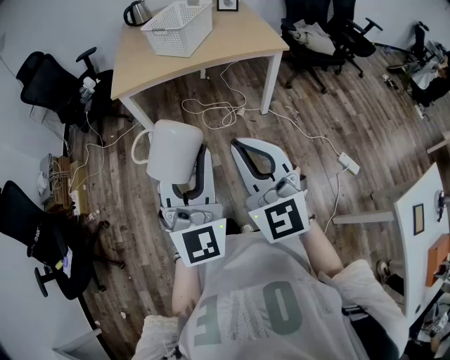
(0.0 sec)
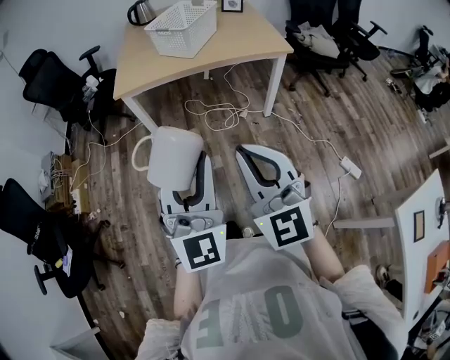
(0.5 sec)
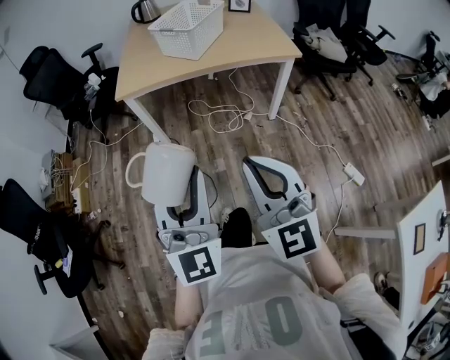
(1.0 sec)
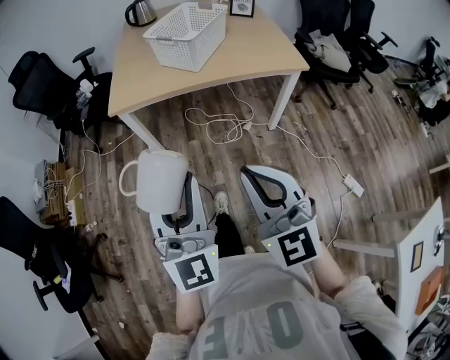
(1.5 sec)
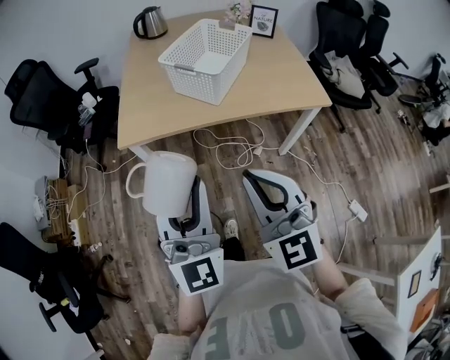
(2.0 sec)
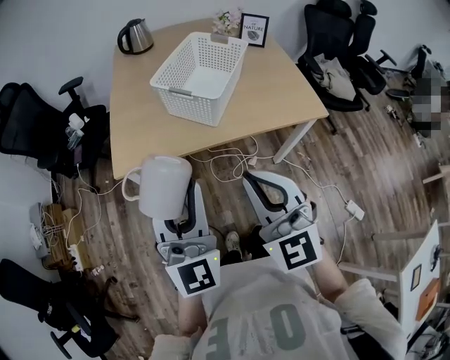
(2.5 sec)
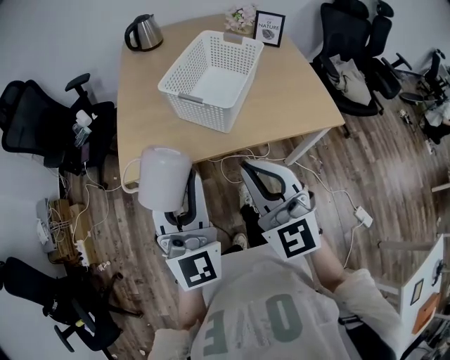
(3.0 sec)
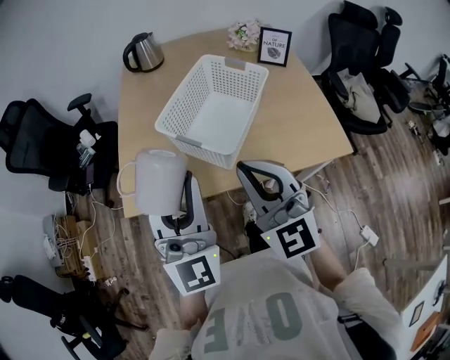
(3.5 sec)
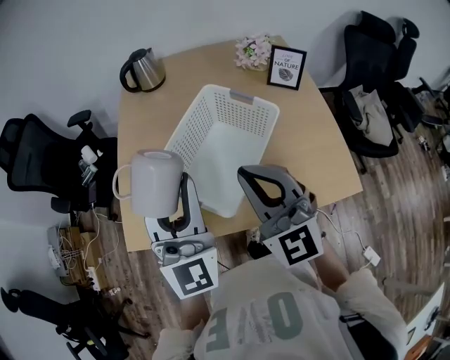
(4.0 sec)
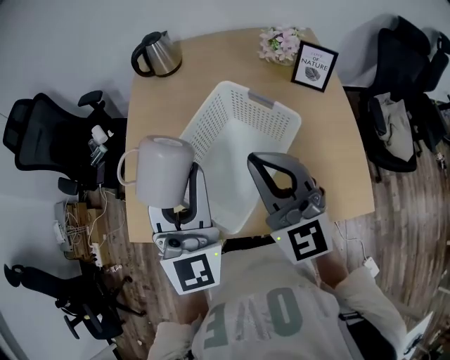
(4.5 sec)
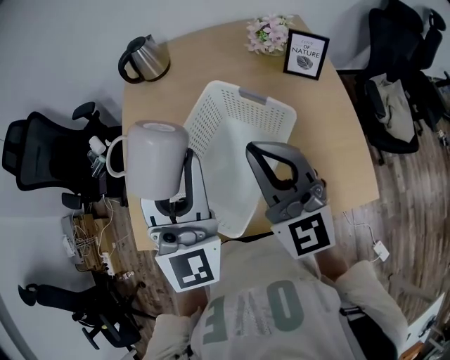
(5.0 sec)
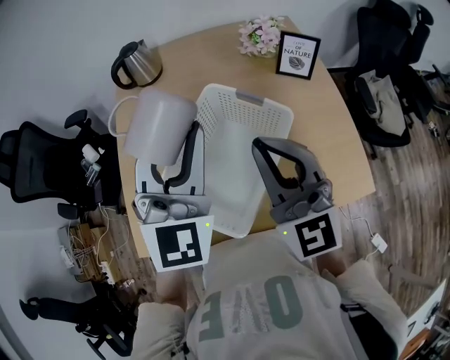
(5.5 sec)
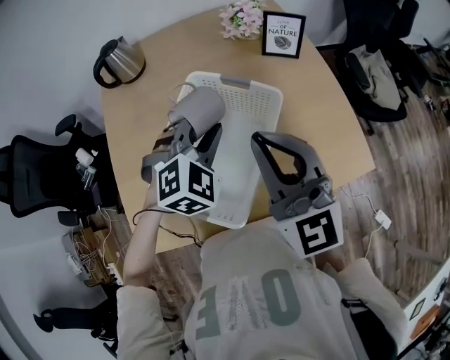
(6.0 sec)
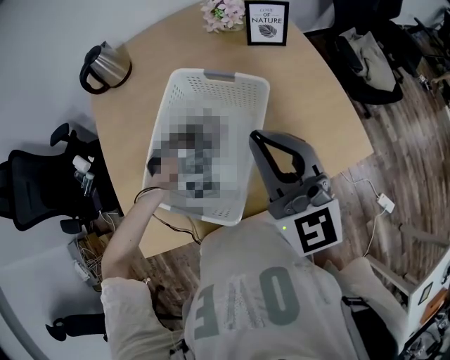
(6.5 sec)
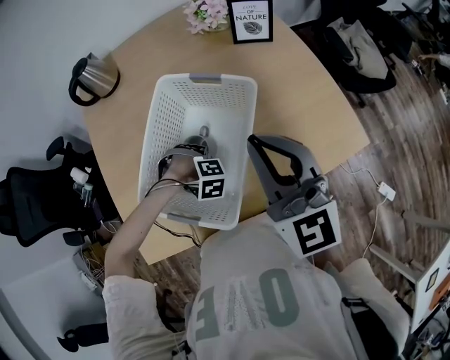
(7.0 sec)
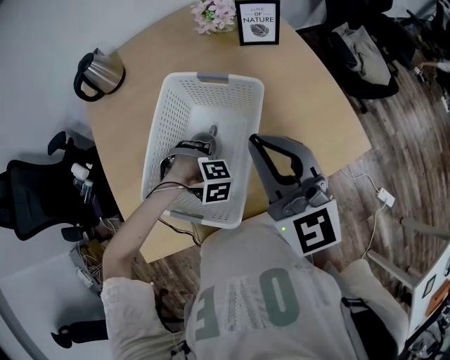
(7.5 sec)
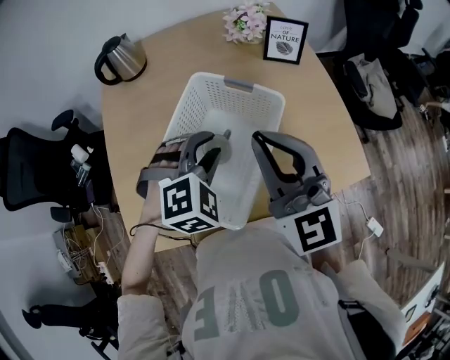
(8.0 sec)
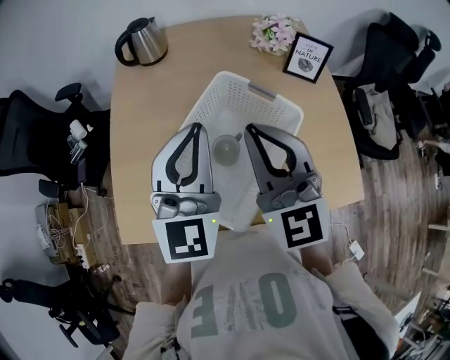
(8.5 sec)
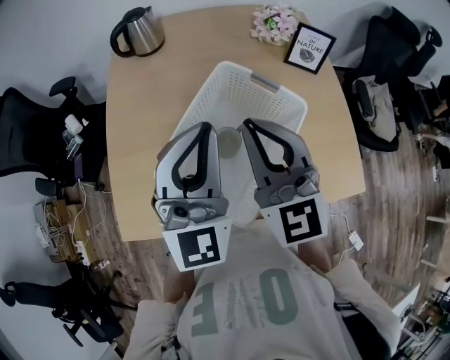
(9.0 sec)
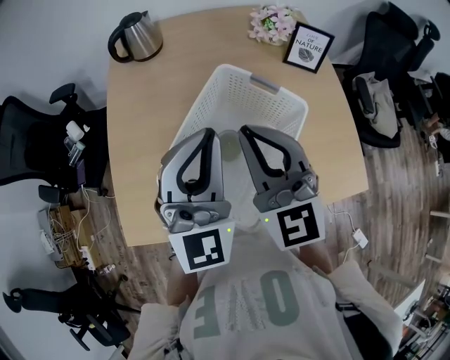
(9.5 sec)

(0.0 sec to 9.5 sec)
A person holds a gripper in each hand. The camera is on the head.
0.0 sec - 2.0 sec: Both grippers travel together forward, some 30 cm.
2.0 sec - 4.0 sec: The two grippers travel together, forward, some 40 cm.
4.0 sec - 5.5 sec: The left gripper moves forward and to the right, approximately 15 cm. Meanwhile the right gripper heads forward, covering roughly 10 cm.
5.5 sec - 7.5 sec: The left gripper heads downward, covering about 40 cm, and angles its fingers downward, by some 80 degrees; the right gripper changes place by some 5 cm.
7.5 sec - 9.5 sec: The right gripper changes place by about 10 cm, while the left gripper heads upward, covering roughly 35 cm, tips its fingers upward by some 90 degrees, and closes up.

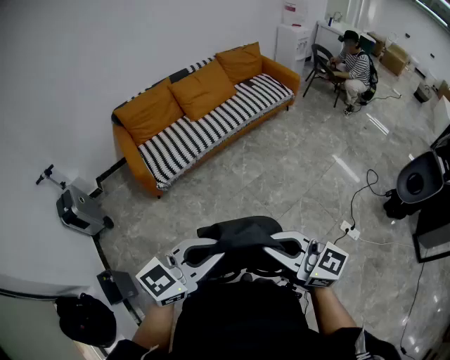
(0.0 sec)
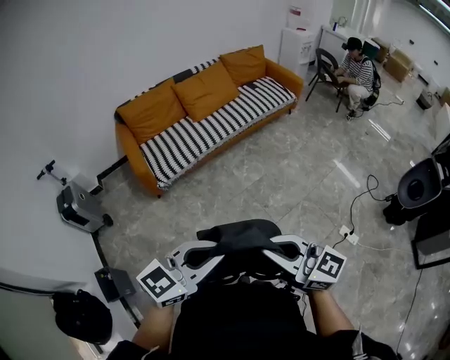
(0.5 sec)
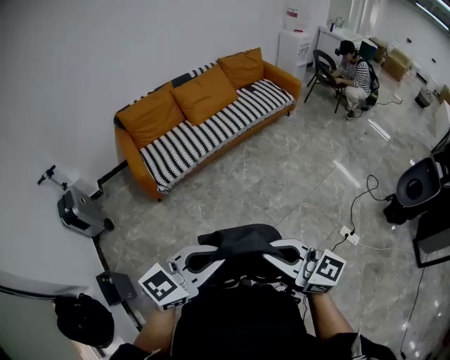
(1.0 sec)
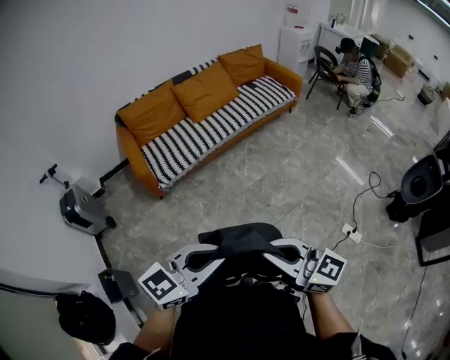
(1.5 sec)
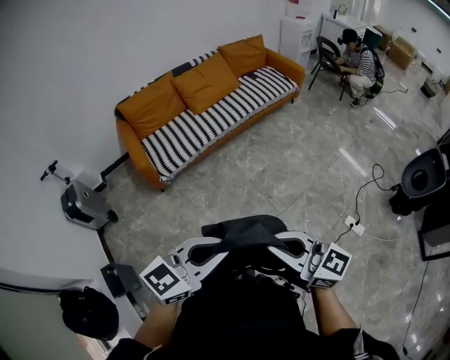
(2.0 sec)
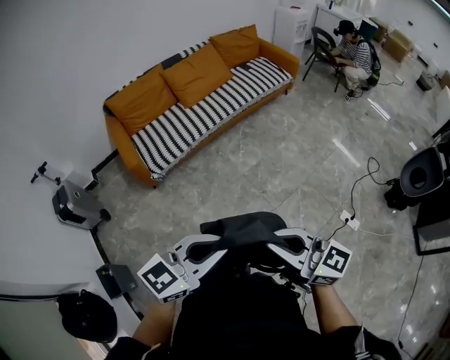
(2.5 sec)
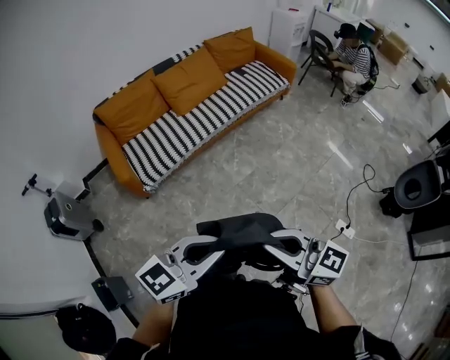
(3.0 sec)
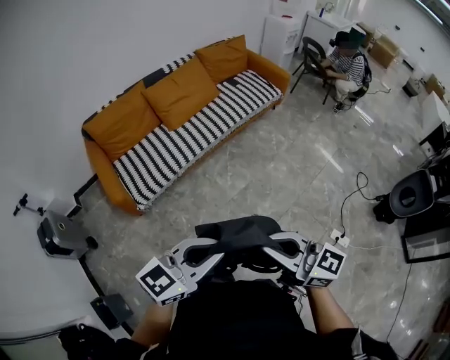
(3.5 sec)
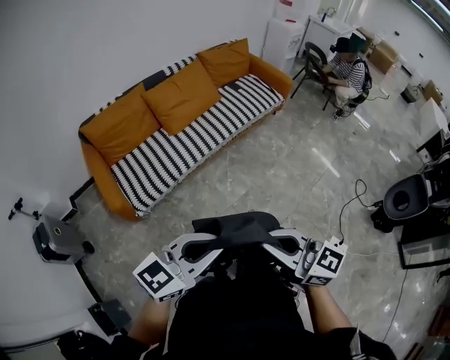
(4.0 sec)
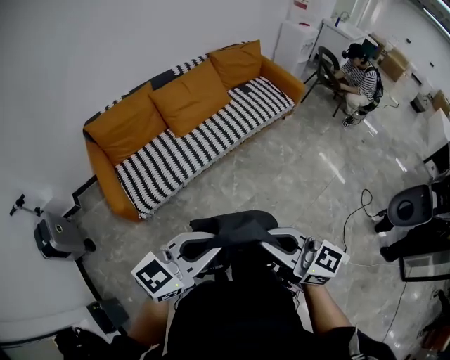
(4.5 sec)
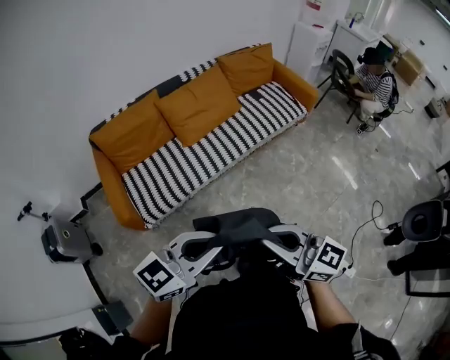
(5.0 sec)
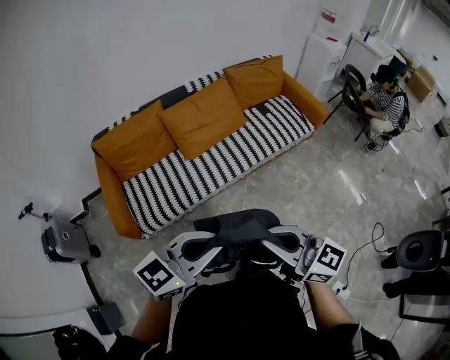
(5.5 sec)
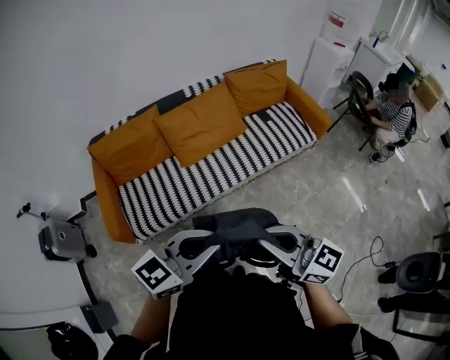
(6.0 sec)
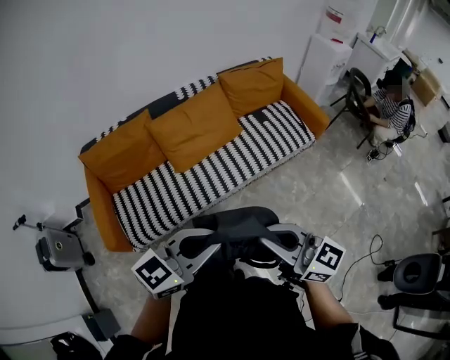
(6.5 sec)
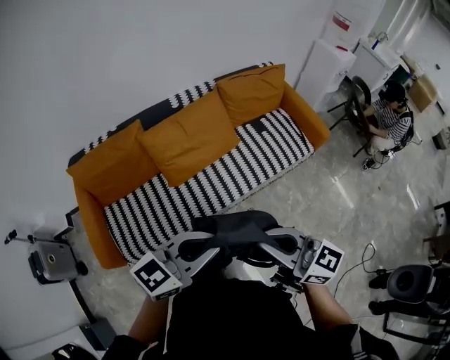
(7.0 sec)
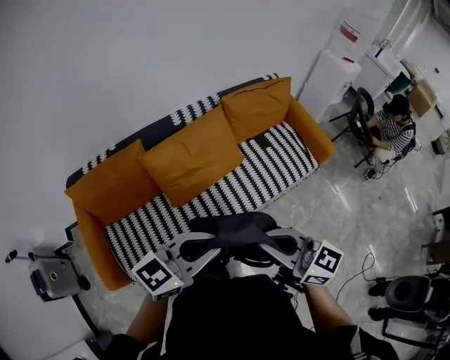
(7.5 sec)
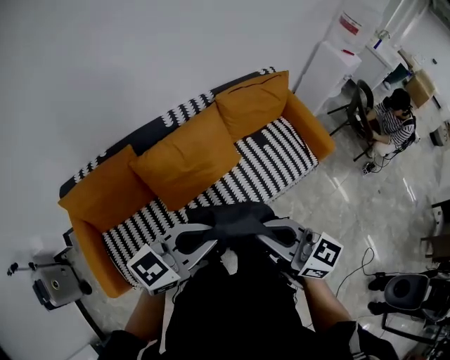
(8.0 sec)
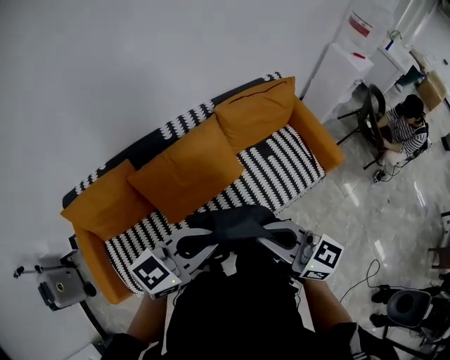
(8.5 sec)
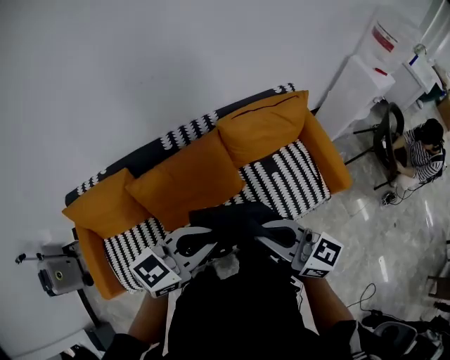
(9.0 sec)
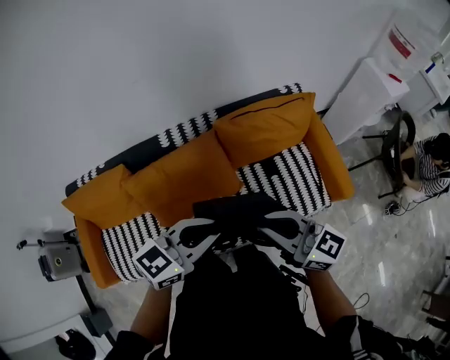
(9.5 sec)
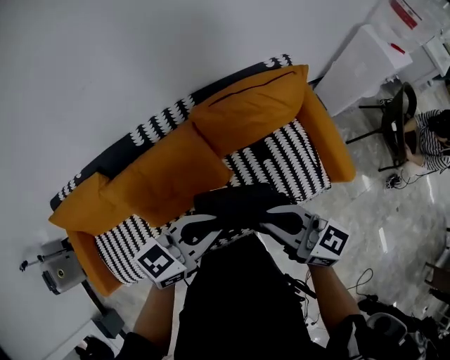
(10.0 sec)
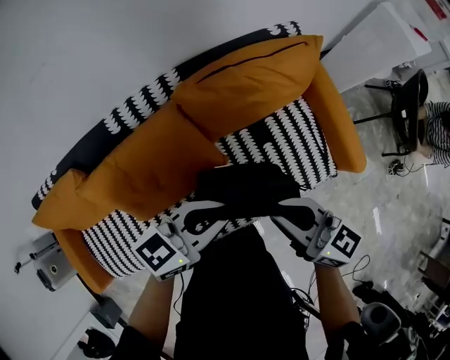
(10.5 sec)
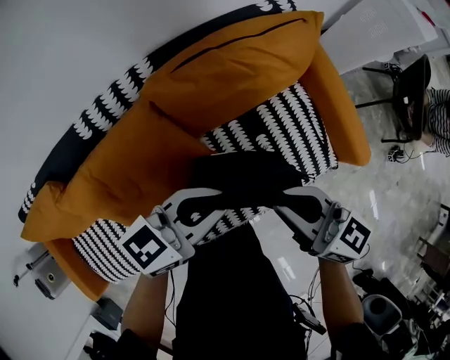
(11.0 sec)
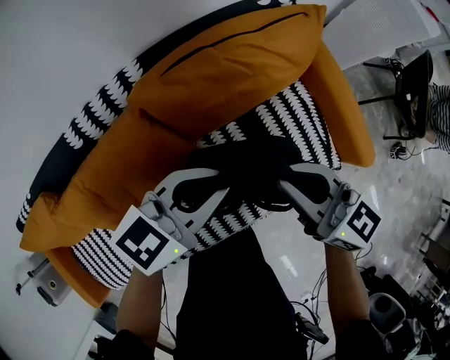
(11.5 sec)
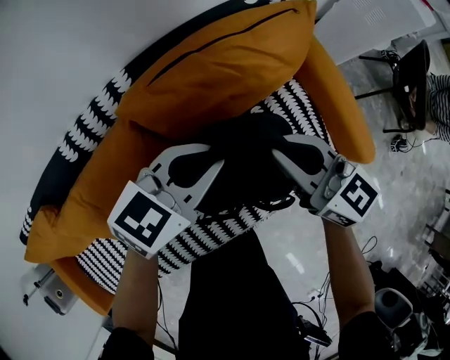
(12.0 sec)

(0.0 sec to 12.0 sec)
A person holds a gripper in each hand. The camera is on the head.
0.0 sec - 2.0 sec: The grippers make only small movements.
2.0 sec - 4.0 sec: Both grippers move forward, about 25 cm.
4.0 sec - 6.0 sec: Both grippers travel together forward, approximately 30 cm.
6.0 sec - 8.0 sec: The two grippers go roughly 35 cm forward.
8.0 sec - 10.0 sec: The two grippers go roughly 35 cm forward and to the right.
10.0 sec - 12.0 sec: The grippers both shift forward and downward by some 25 cm. The right gripper swivels about 20 degrees.

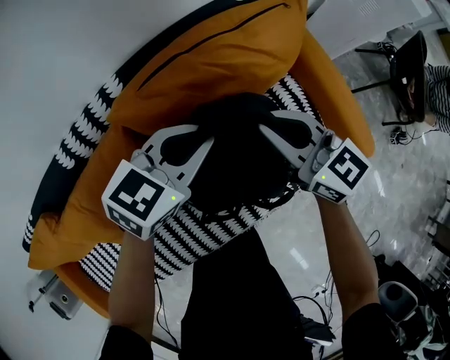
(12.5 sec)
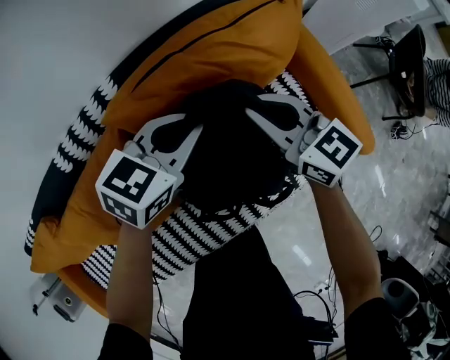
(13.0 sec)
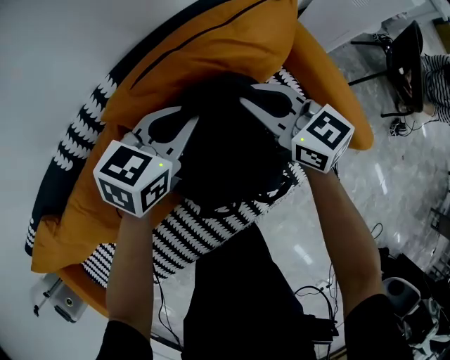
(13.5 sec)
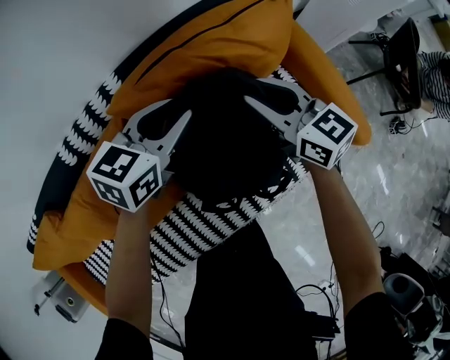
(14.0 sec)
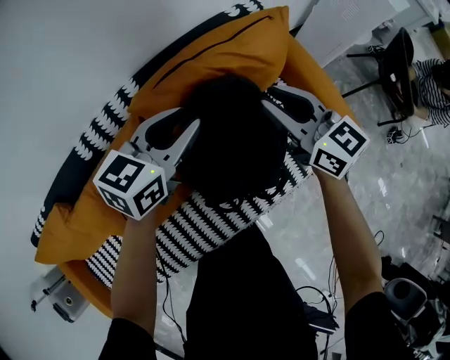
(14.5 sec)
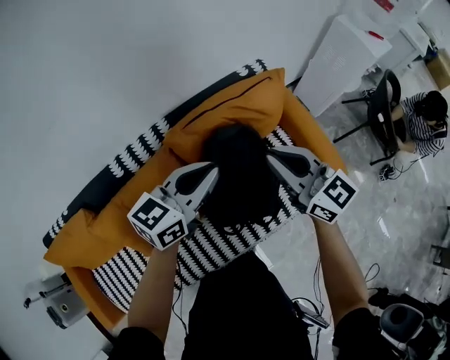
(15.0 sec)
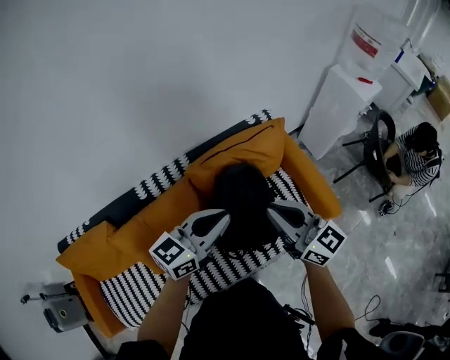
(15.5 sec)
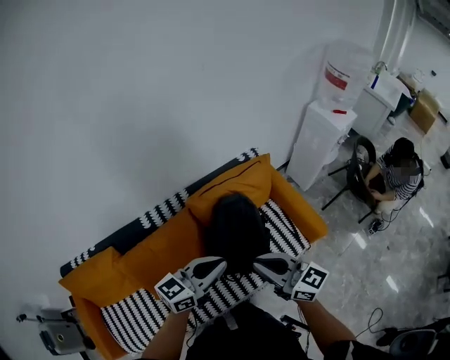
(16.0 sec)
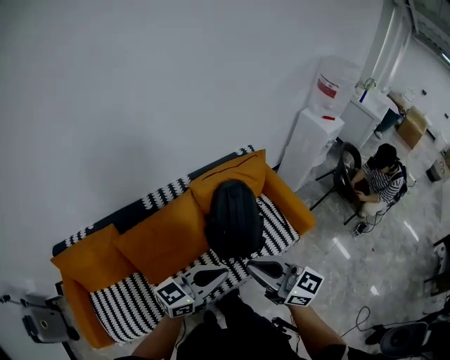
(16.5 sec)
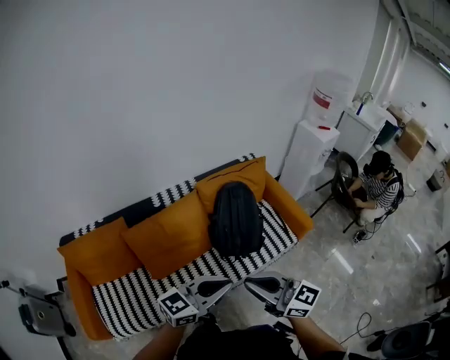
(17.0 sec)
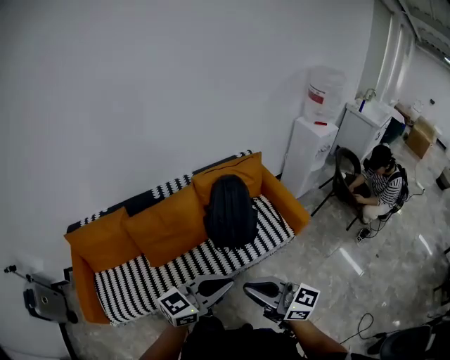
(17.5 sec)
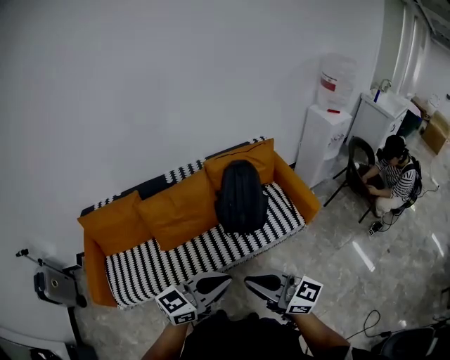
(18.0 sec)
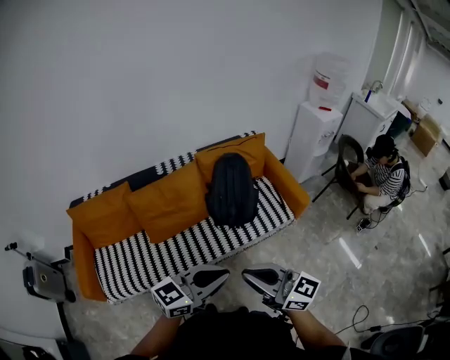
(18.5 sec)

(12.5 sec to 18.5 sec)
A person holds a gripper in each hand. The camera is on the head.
12.5 sec - 14.5 sec: Both grippers travel together upward, roughly 5 cm. The left gripper opens.
14.5 sec - 16.5 sec: Both grippers move backward and upward, approximately 50 cm. The right gripper closes its fingers. The left gripper changes its angle by some 30 degrees, and closes up.
16.5 sec - 18.5 sec: The two grippers go some 25 cm backward.
